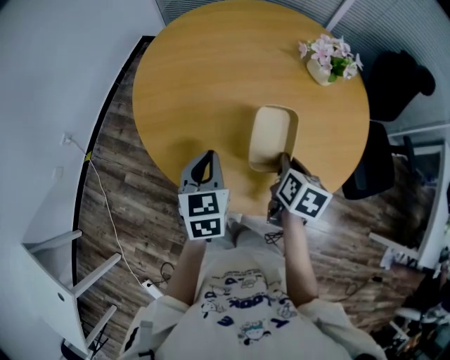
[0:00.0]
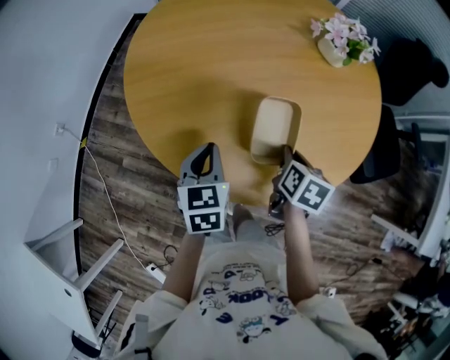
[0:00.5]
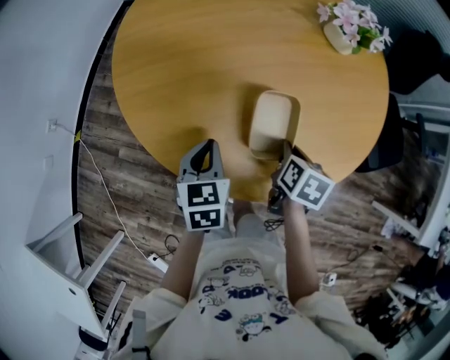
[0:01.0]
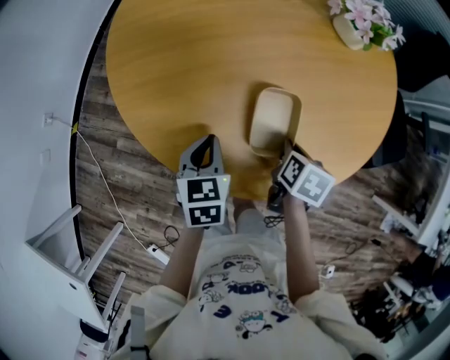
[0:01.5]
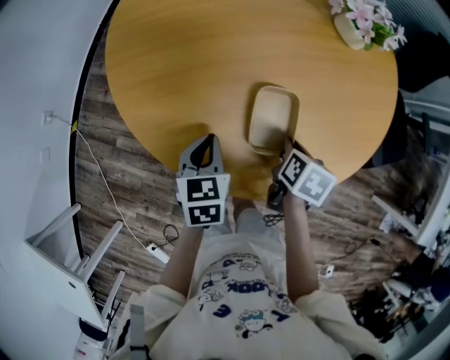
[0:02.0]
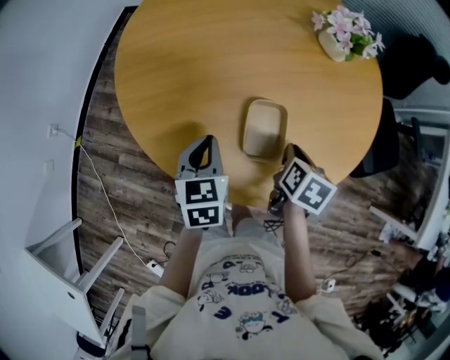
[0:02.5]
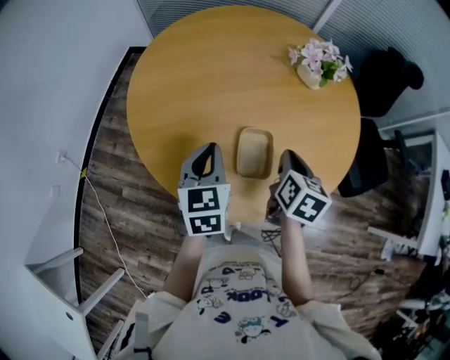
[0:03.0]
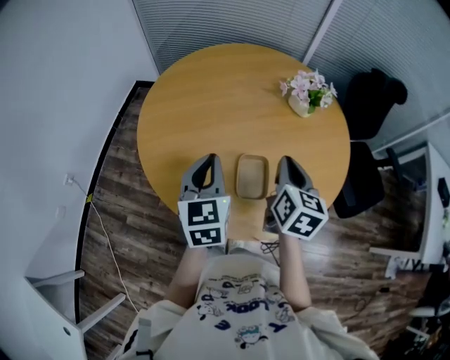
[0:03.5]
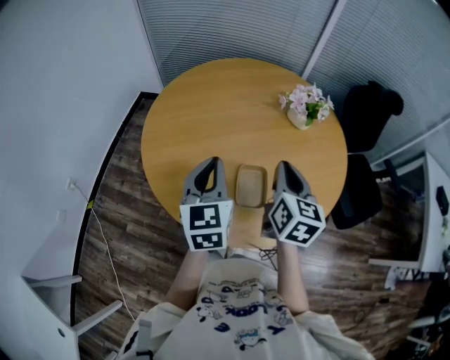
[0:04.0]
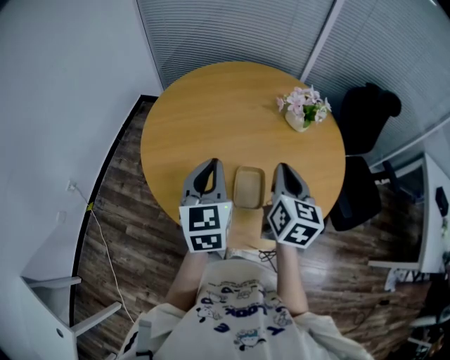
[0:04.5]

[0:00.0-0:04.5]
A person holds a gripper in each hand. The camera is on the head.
0:00.0 to 0:02.0: The two grippers go some 10 cm downward.
0:02.0 to 0:04.5: Both grippers move upward, about 25 cm. The left gripper points its fingers about 30 degrees further upward, while the right gripper angles its fingers upward, by about 50 degrees.

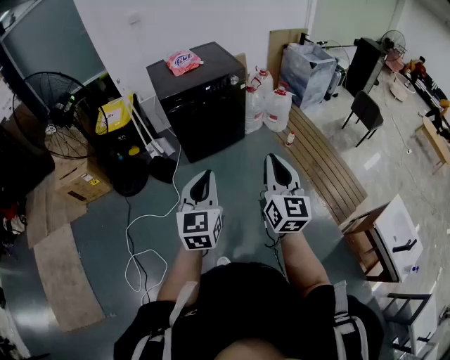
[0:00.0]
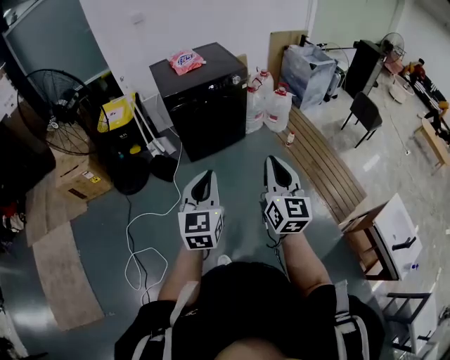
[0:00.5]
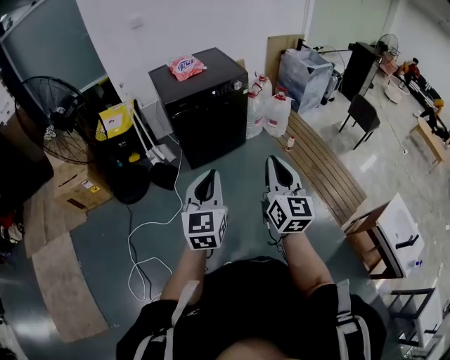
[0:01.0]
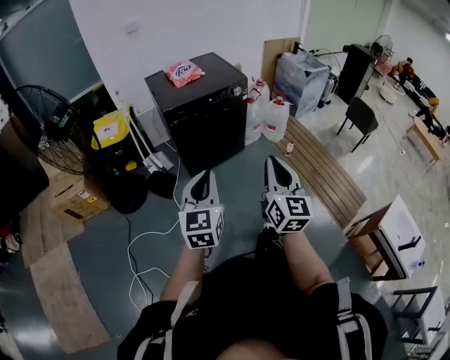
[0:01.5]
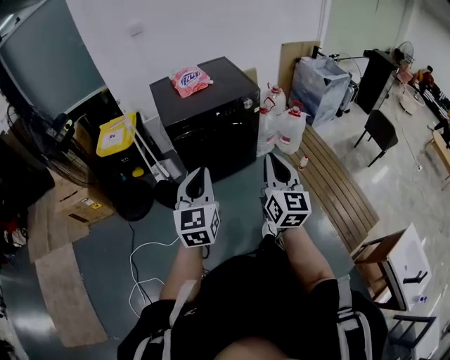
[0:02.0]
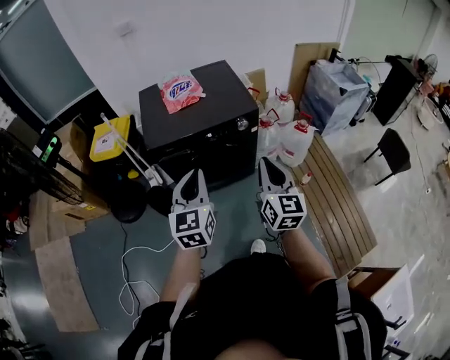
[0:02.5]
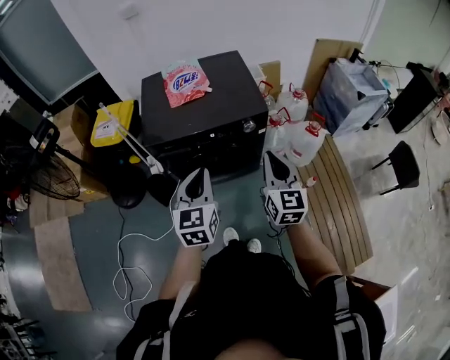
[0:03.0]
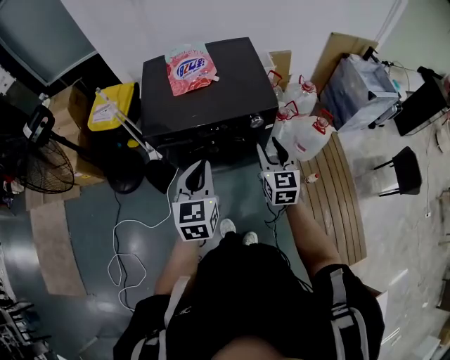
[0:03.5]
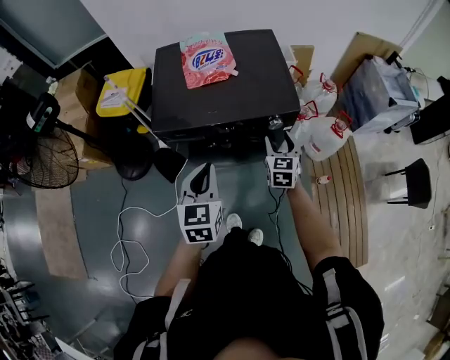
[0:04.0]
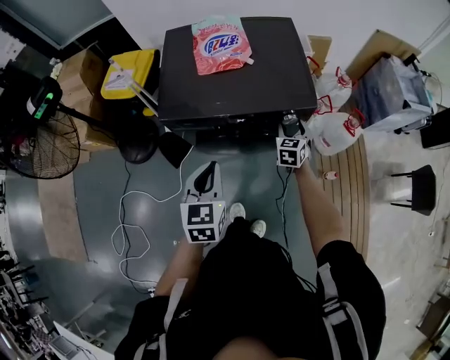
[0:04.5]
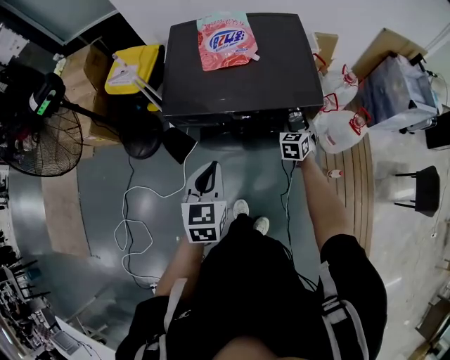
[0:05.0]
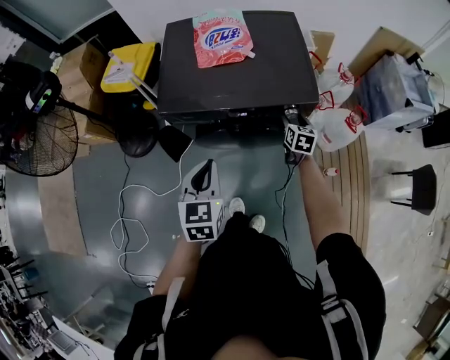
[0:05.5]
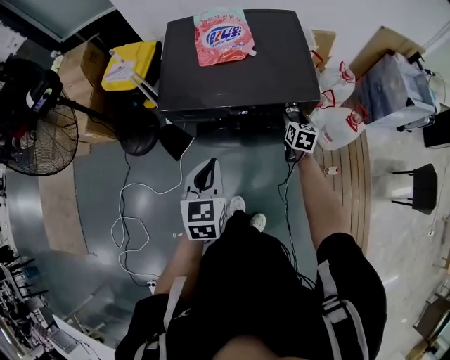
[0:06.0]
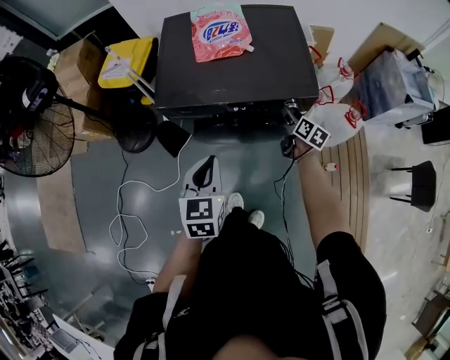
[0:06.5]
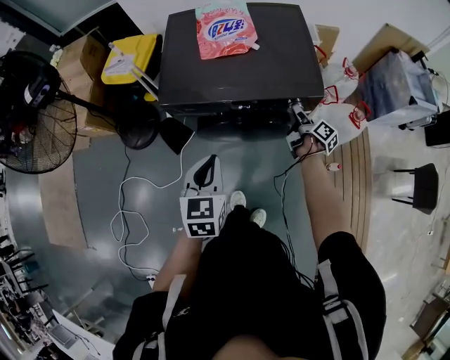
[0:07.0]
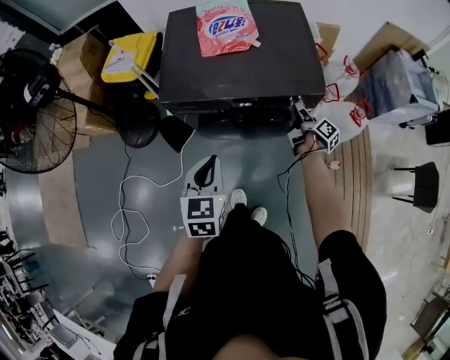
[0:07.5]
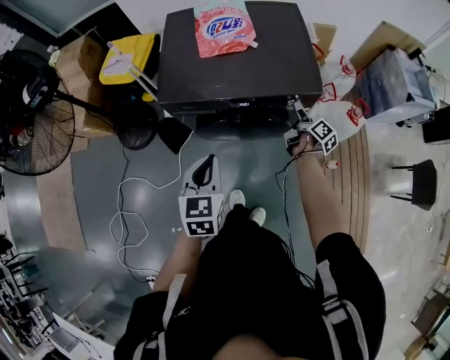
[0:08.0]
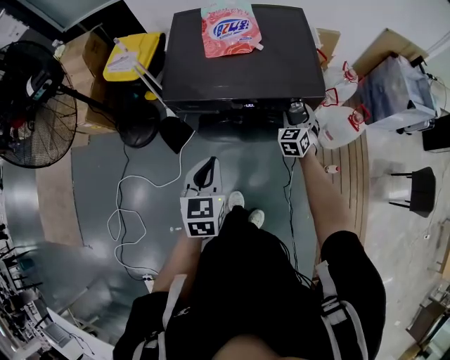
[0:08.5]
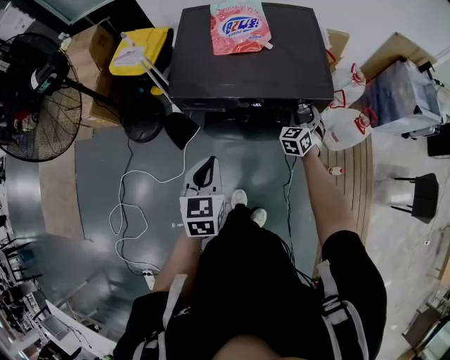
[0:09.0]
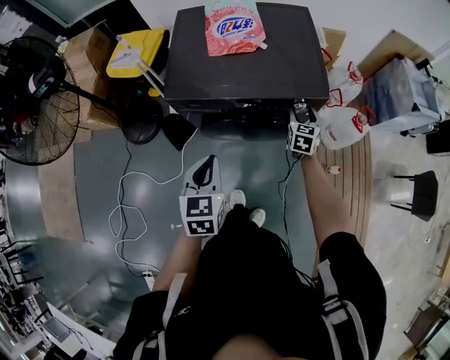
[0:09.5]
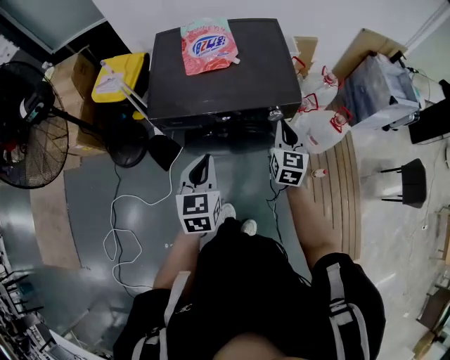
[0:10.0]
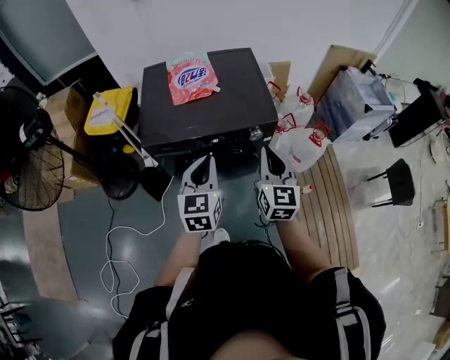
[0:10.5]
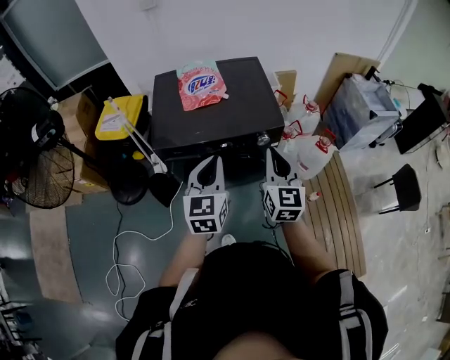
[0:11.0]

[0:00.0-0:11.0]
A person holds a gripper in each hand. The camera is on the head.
0:00.0 to 0:02.0: Both grippers travel together forward, about 20 cm.
0:02.0 to 0:03.5: The left gripper travels forward and to the right by roughly 35 cm. The right gripper is displaced forward by some 40 cm, swivels approximately 30 degrees, and opens its fingers.
0:03.5 to 0:05.5: The right gripper goes about 25 cm downward and forward, and swivels approximately 30 degrees. The left gripper is displaced downward and to the left by approximately 10 cm.
0:05.5 to 0:07.5: The right gripper rotates around the line of its fingers by about 70 degrees, clockwise from behind.
0:07.5 to 0:09.0: The right gripper rotates around the line of its fingers by roughly 110 degrees, counterclockwise from behind.
0:09.0 to 0:11.0: The right gripper goes about 30 cm upward and backward, swivels some 50 degrees, and closes up. The left gripper heads upward and to the right, covering roughly 15 cm, and changes its angle by some 20 degrees.

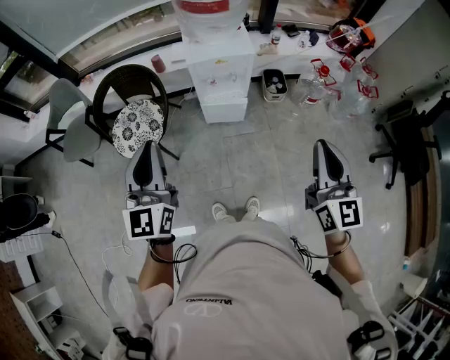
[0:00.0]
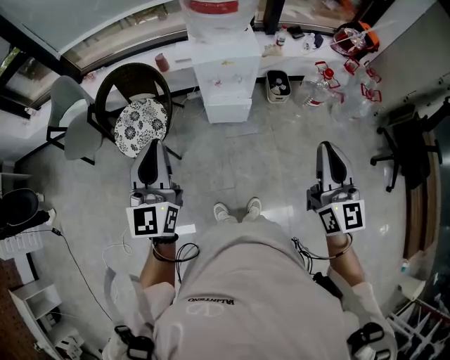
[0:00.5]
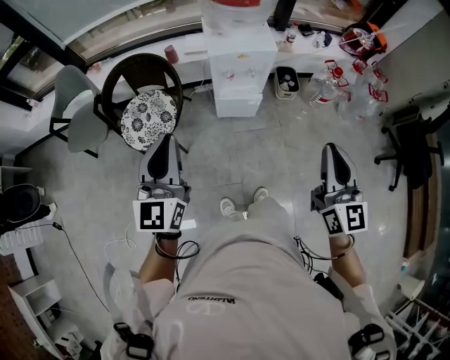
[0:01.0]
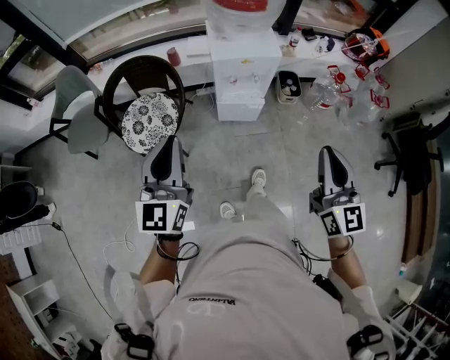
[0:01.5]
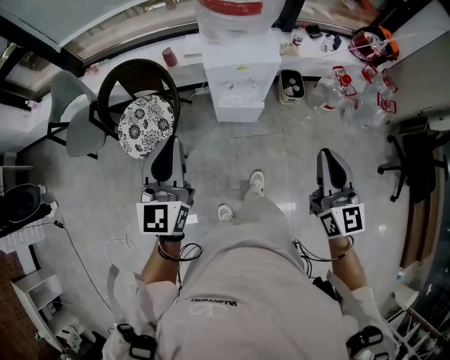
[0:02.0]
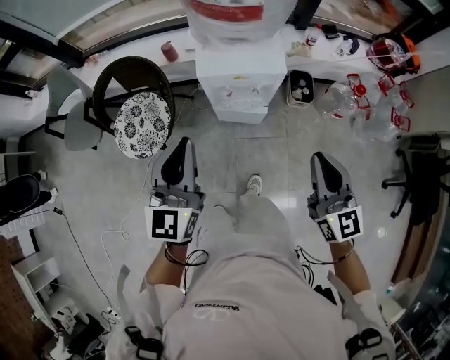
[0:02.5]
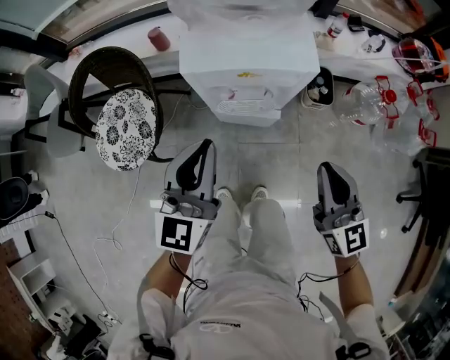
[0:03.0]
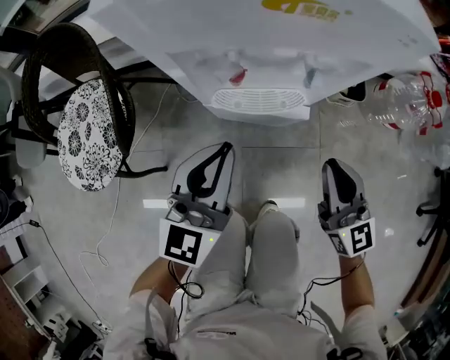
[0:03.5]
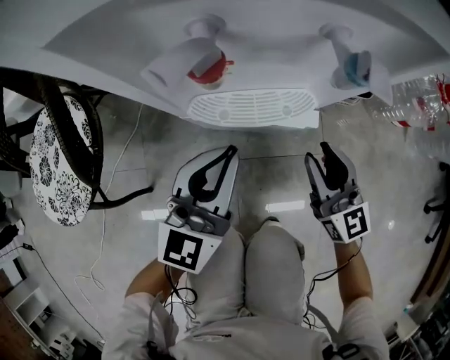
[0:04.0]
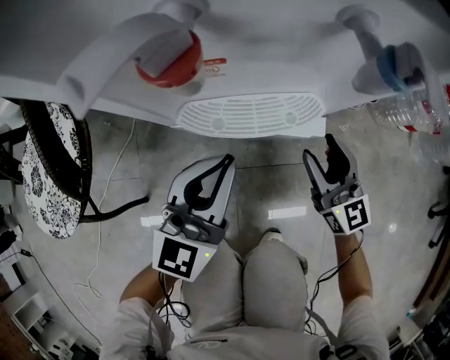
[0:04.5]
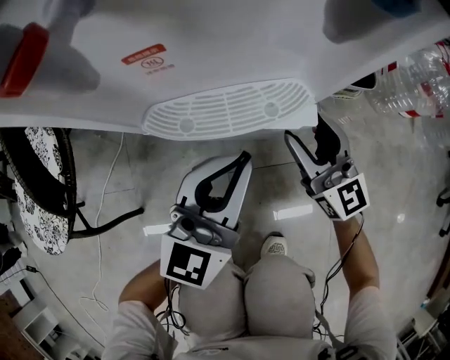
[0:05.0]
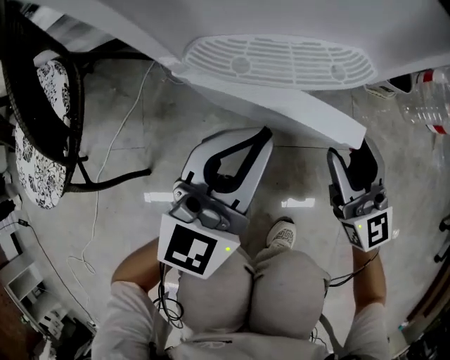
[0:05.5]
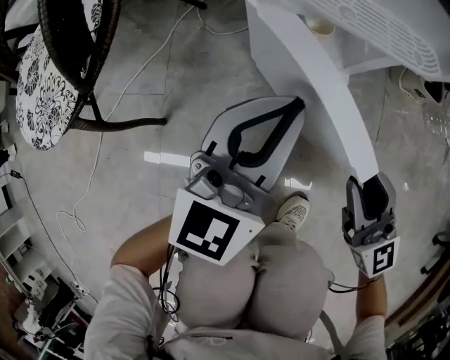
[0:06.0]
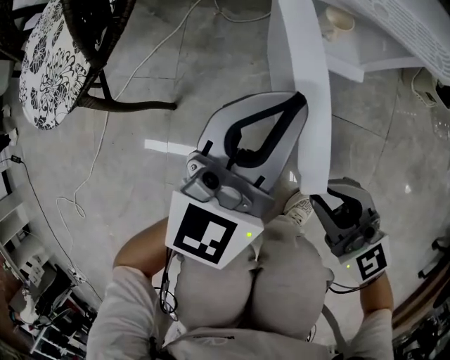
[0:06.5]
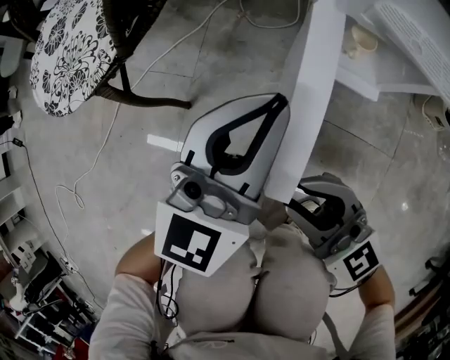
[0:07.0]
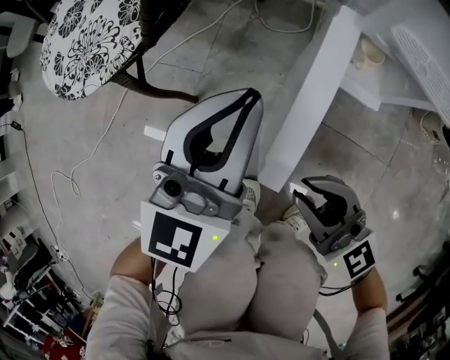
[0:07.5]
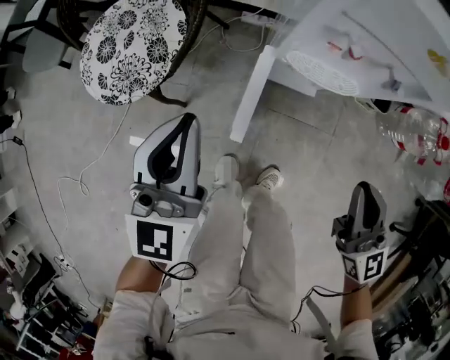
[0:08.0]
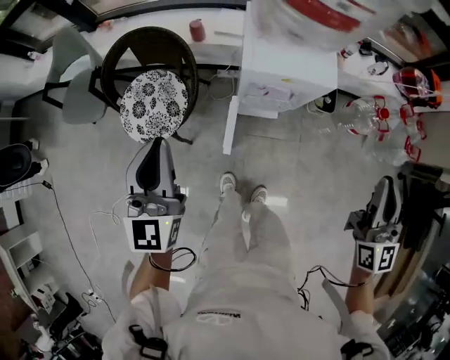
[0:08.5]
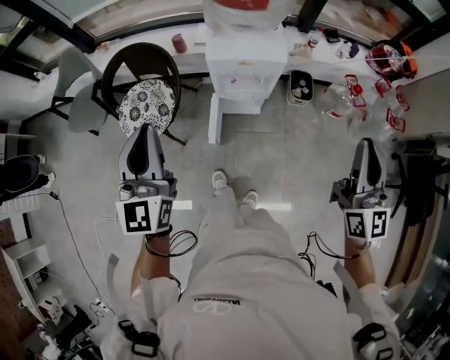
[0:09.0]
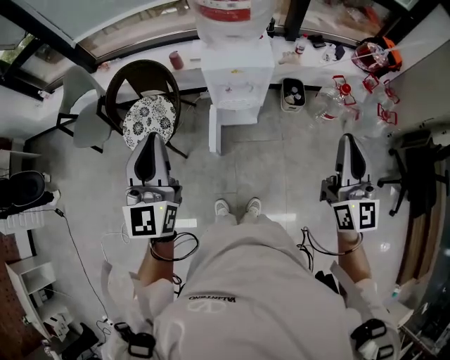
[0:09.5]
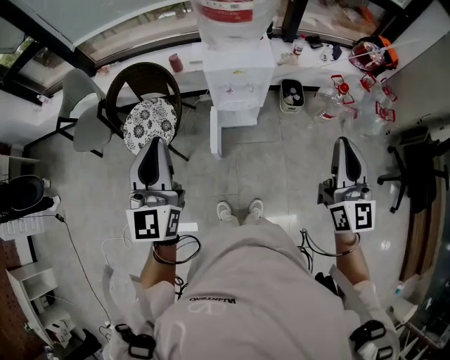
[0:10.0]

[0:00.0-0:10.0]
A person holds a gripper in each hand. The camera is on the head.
0:00.0 to 0:02.0: The right gripper shifts approximately 10 cm forward and downward, while the left gripper travels forward by about 10 cm.
0:02.0 to 0:04.0: The grippers both shift downward and forward by about 70 cm. The right gripper opens.
0:04.0 to 0:06.0: The right gripper heads backward, downward and to the left, covering some 15 cm, and opens, then closes once more. Meanwhile the left gripper moves downward and backward, some 10 cm.
0:06.0 to 0:08.0: The left gripper heads upward and to the left, covering about 35 cm, and swivels some 20 degrees. The right gripper moves upward, about 30 cm, and closes.
0:08.0 to 0:10.0: The two grippers go approximately 50 cm upward and backward. The right gripper rotates approximately 30 degrees.

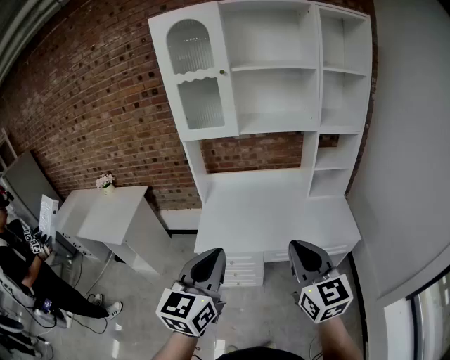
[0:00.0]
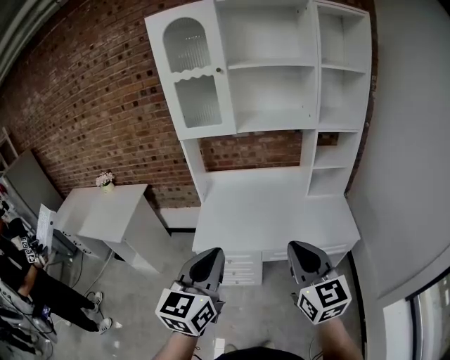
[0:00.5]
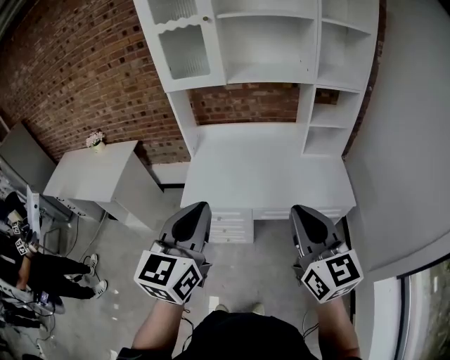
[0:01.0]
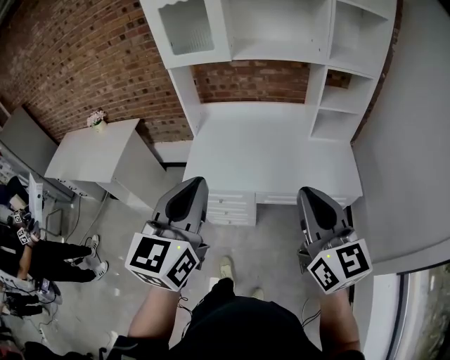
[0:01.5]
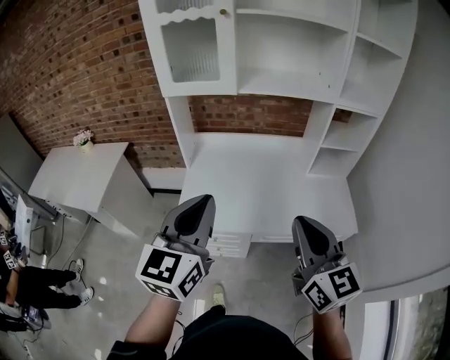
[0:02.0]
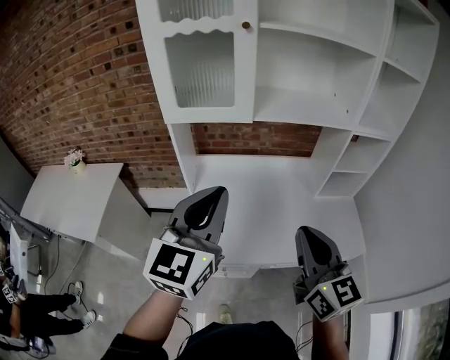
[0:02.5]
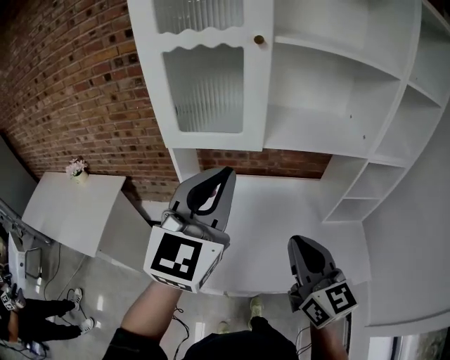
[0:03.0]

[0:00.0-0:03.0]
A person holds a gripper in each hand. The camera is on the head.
0:00.0 to 0:01.5: The right gripper heads to the right, covering about 5 cm.
0:01.5 to 0:03.0: The left gripper goes roughly 40 cm forward. Meanwhile the right gripper is displaced forward and to the left by roughly 35 cm.
